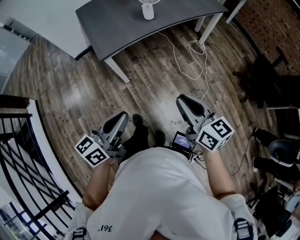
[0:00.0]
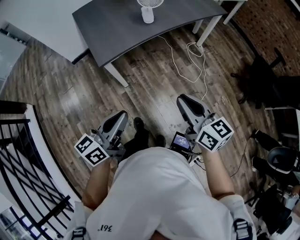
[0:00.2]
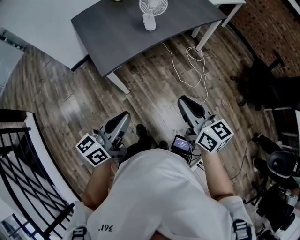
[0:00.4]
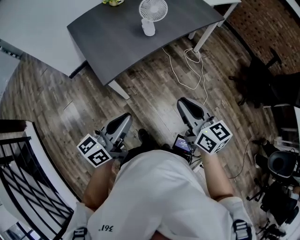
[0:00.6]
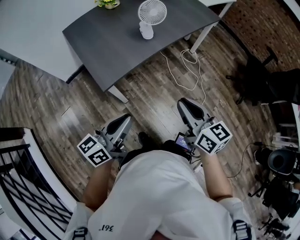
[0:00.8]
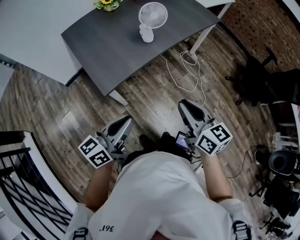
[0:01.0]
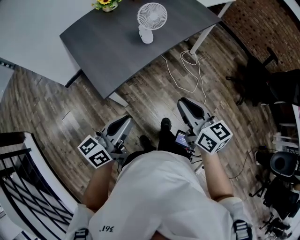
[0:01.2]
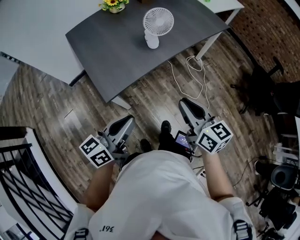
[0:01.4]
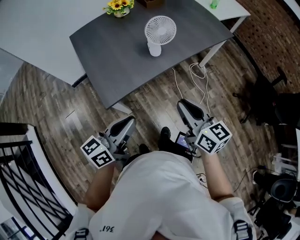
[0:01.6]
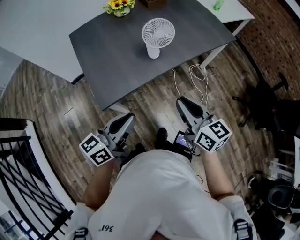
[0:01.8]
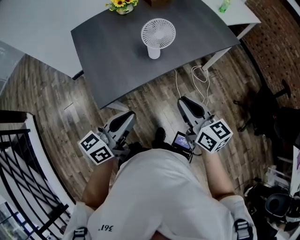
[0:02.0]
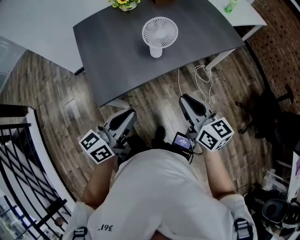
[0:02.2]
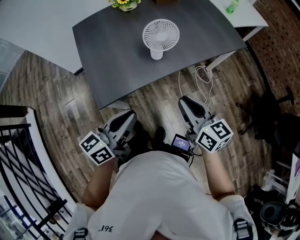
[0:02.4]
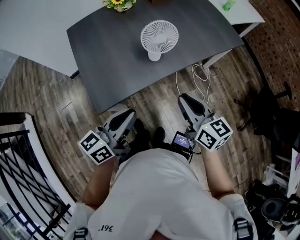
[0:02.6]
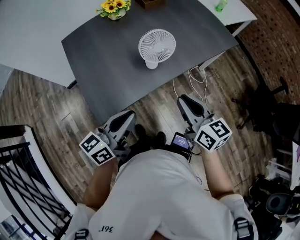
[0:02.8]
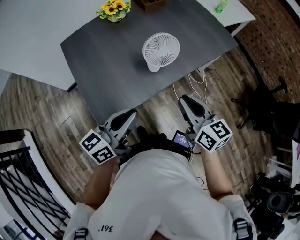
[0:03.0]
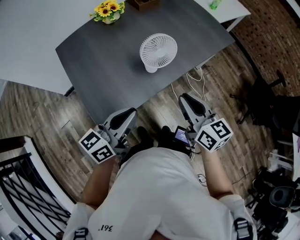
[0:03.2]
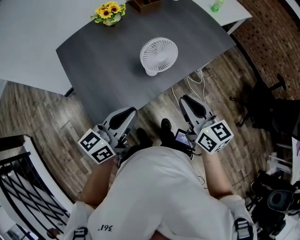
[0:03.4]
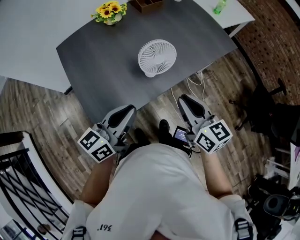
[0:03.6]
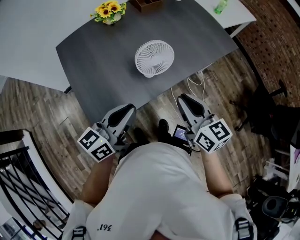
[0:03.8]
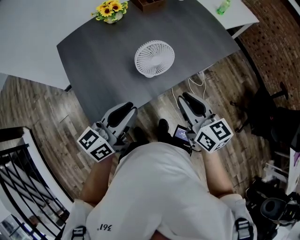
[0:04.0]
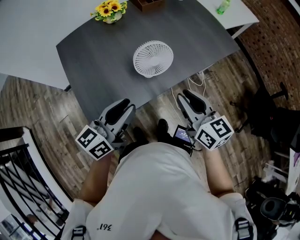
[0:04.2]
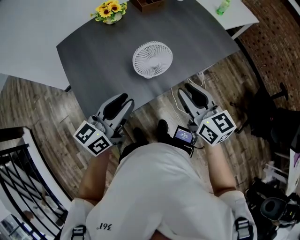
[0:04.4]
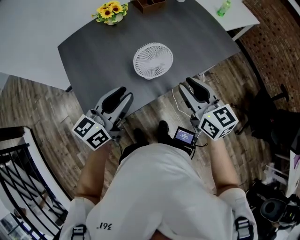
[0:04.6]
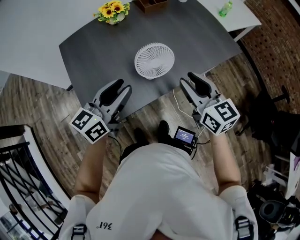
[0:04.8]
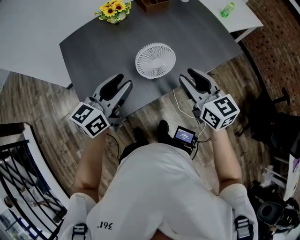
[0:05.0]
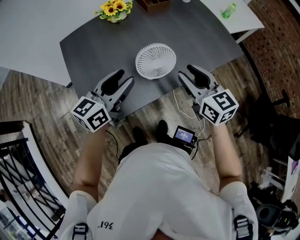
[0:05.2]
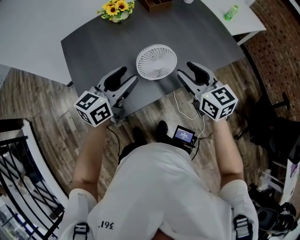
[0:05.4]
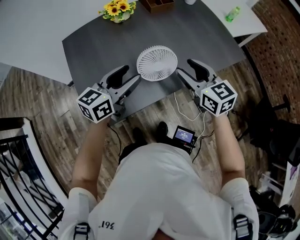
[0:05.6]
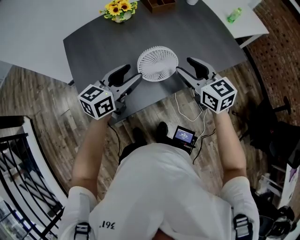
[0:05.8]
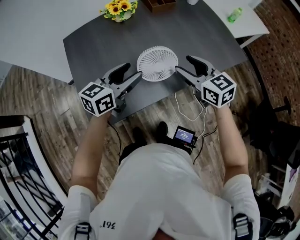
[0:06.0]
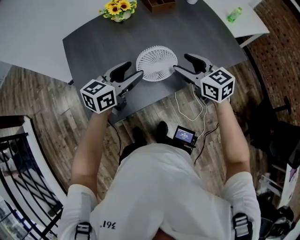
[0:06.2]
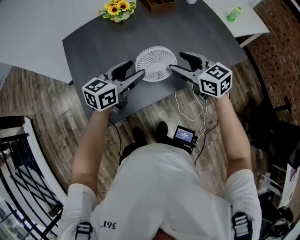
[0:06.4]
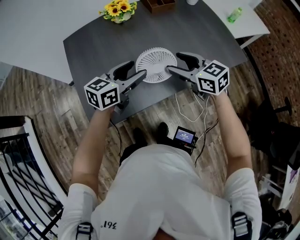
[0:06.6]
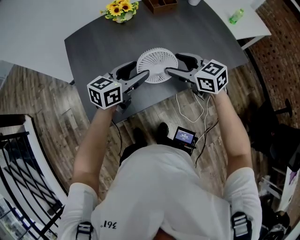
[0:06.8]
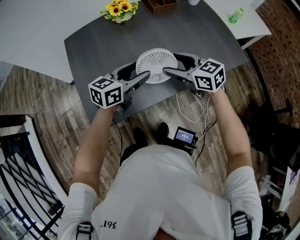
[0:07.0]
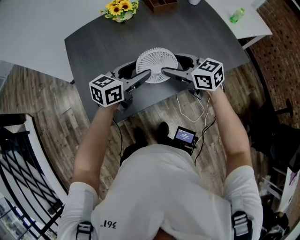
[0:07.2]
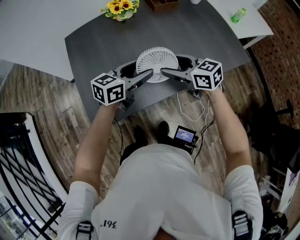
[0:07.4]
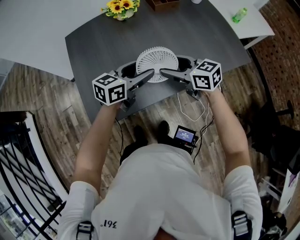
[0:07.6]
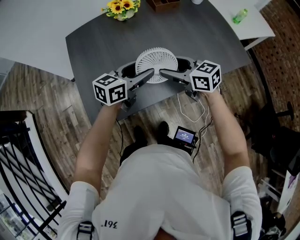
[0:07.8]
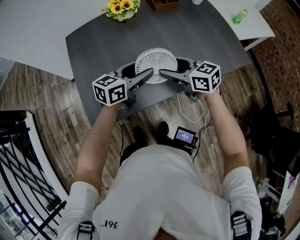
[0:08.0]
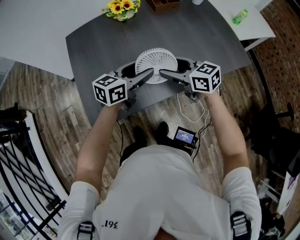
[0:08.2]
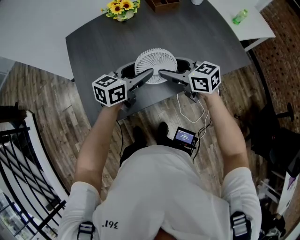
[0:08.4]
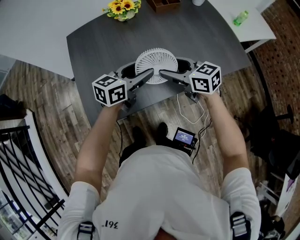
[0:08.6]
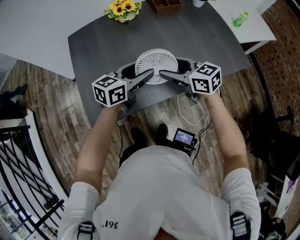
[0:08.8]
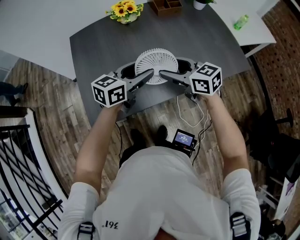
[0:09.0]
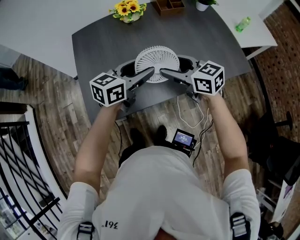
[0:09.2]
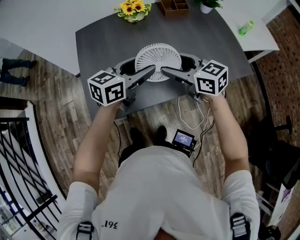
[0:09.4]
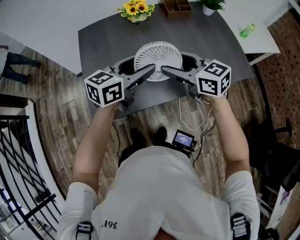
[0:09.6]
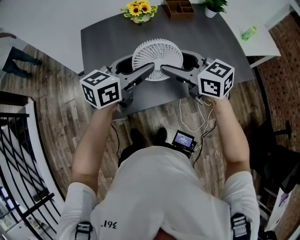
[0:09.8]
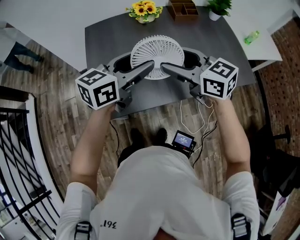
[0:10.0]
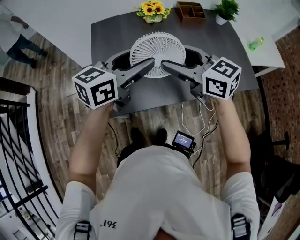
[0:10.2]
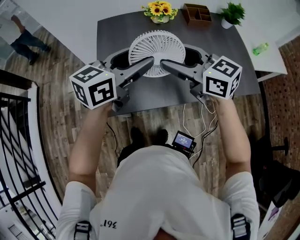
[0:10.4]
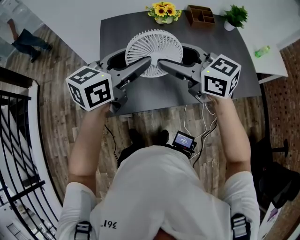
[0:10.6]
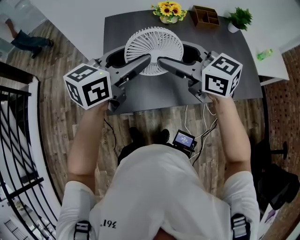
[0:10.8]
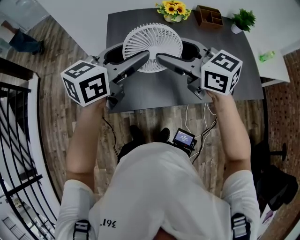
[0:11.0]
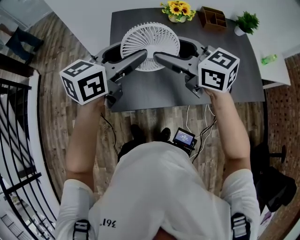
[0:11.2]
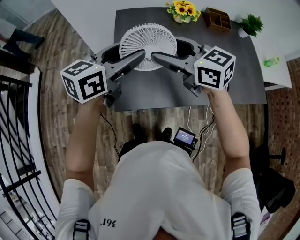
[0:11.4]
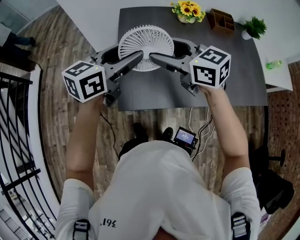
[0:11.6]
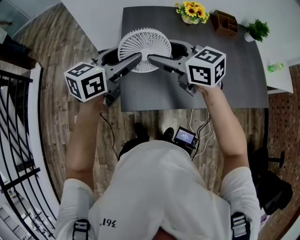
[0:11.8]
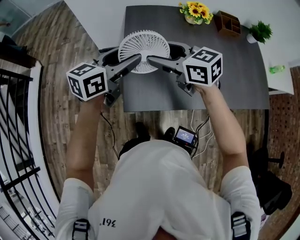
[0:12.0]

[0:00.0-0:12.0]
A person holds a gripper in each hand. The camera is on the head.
0:00.0 to 0:01.6: Both grippers travel together forward, about 20 cm.
0:01.6 to 0:03.0: The two grippers go about 15 cm forward.
0:03.0 to 0:04.4: Both grippers travel together forward, some 10 cm. The left gripper opens its fingers.
0:04.4 to 0:06.0: The grippers both shift forward by about 10 cm. The left gripper opens up. Meanwhile the right gripper opens its fingers.
0:06.0 to 0:07.6: The right gripper moves to the left, about 5 cm, and rotates about 20 degrees. Meanwhile the left gripper shifts by roughly 5 cm.
0:07.6 to 0:09.0: The grippers stay close to where they were, moving slightly.
0:09.0 to 0:10.4: The two grippers go some 20 cm upward and to the left.
0:10.4 to 0:12.0: Both grippers move to the left, approximately 20 cm.

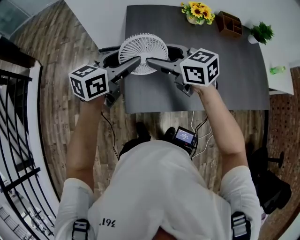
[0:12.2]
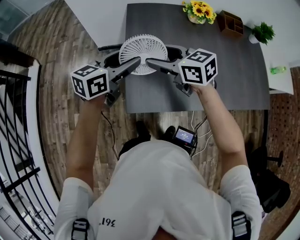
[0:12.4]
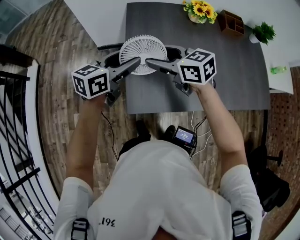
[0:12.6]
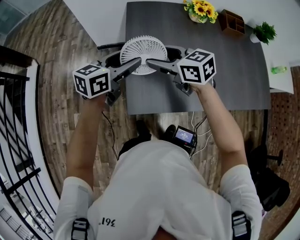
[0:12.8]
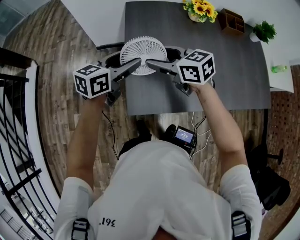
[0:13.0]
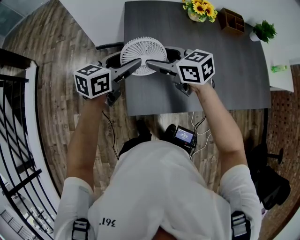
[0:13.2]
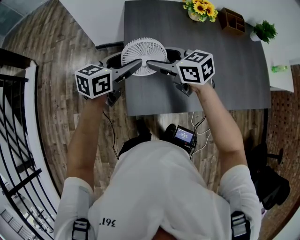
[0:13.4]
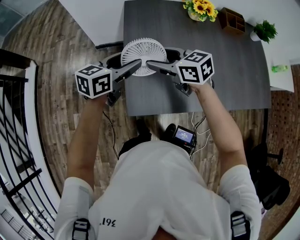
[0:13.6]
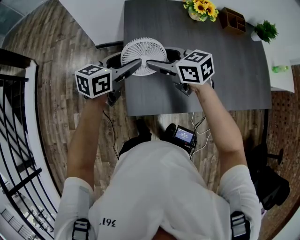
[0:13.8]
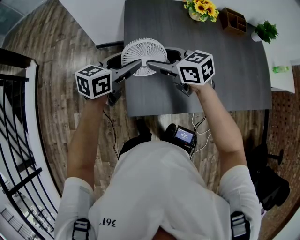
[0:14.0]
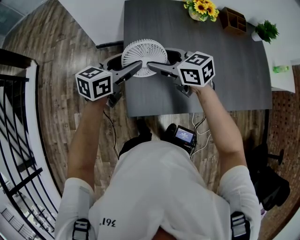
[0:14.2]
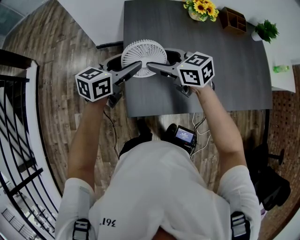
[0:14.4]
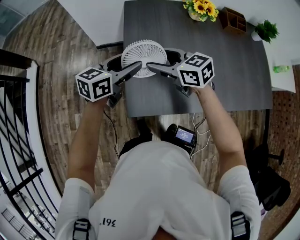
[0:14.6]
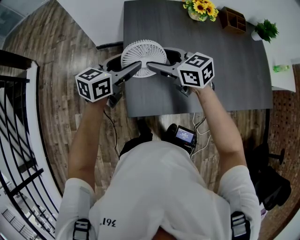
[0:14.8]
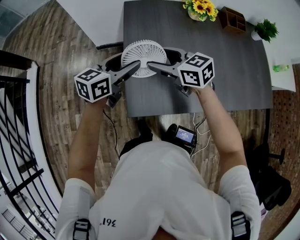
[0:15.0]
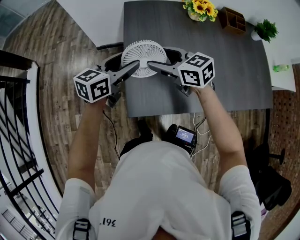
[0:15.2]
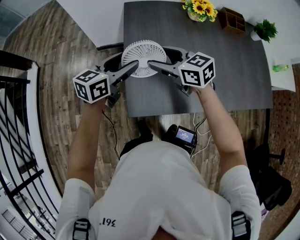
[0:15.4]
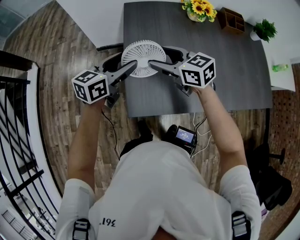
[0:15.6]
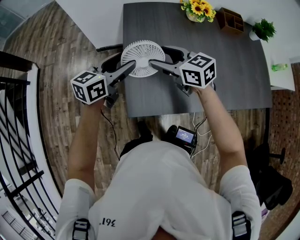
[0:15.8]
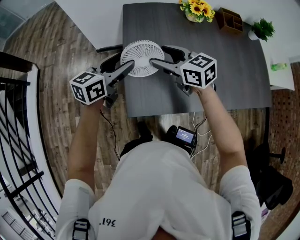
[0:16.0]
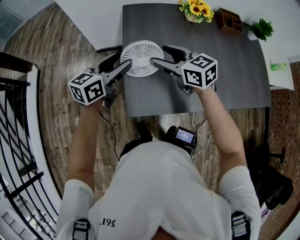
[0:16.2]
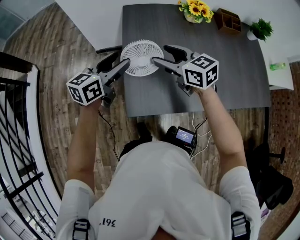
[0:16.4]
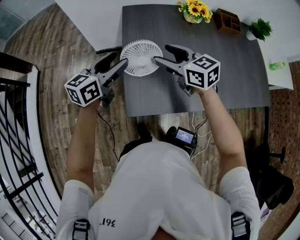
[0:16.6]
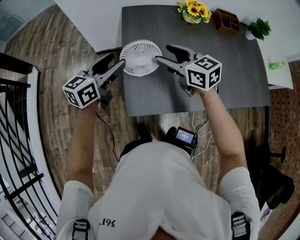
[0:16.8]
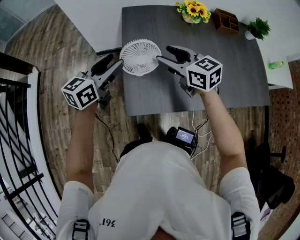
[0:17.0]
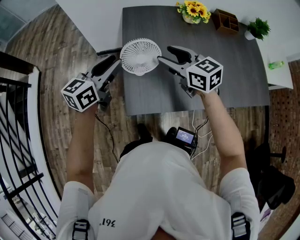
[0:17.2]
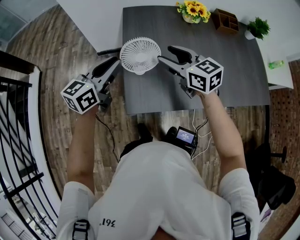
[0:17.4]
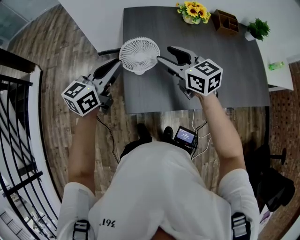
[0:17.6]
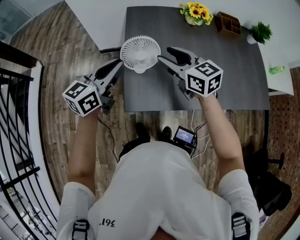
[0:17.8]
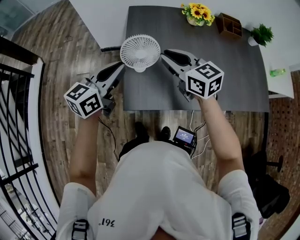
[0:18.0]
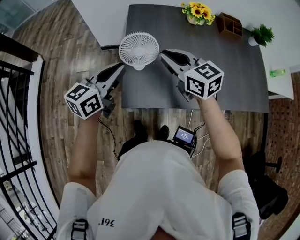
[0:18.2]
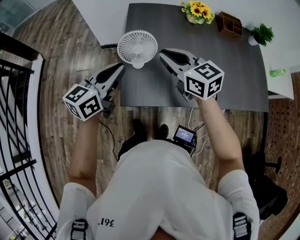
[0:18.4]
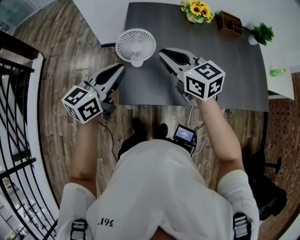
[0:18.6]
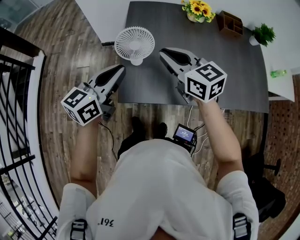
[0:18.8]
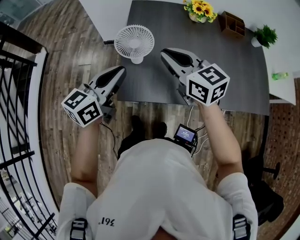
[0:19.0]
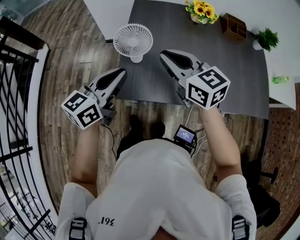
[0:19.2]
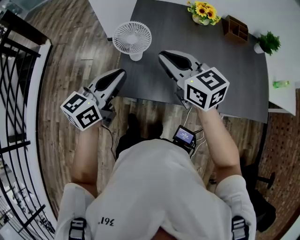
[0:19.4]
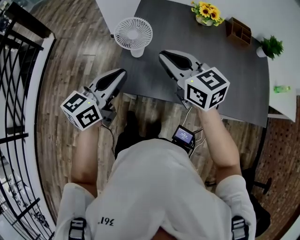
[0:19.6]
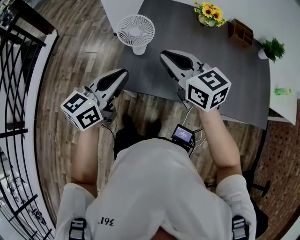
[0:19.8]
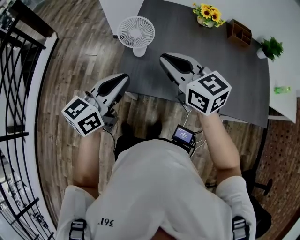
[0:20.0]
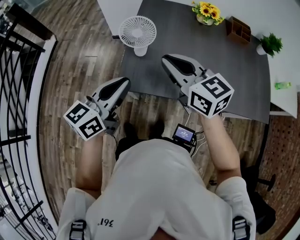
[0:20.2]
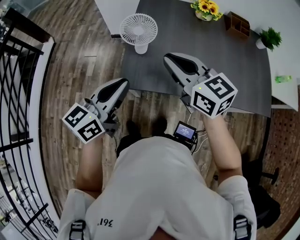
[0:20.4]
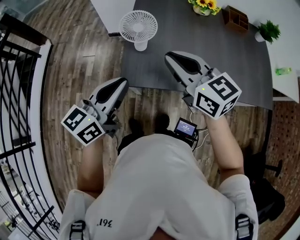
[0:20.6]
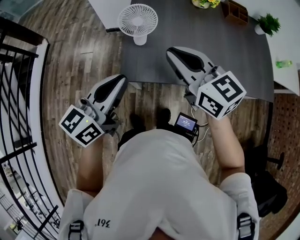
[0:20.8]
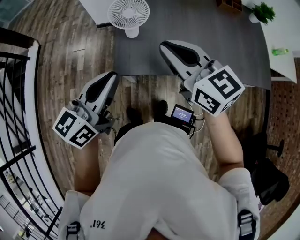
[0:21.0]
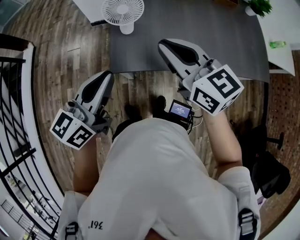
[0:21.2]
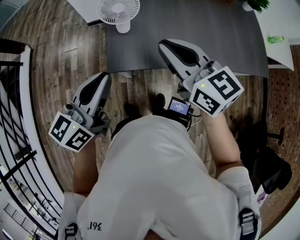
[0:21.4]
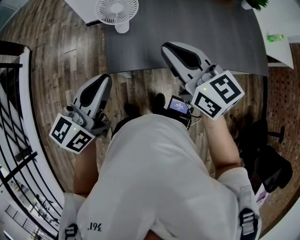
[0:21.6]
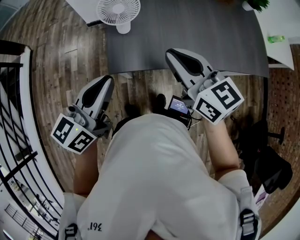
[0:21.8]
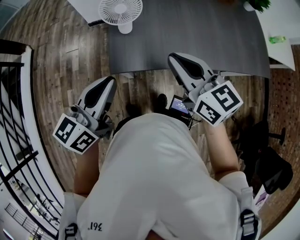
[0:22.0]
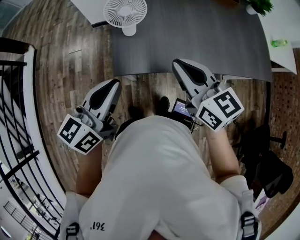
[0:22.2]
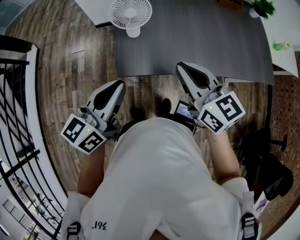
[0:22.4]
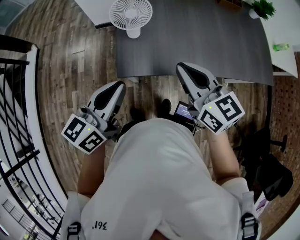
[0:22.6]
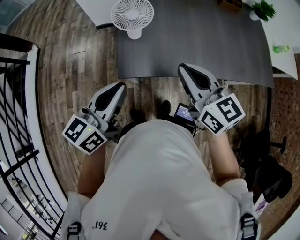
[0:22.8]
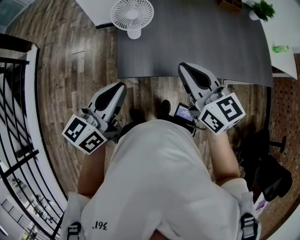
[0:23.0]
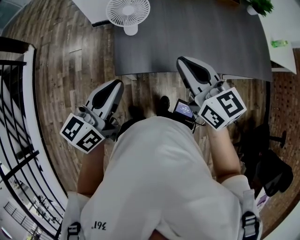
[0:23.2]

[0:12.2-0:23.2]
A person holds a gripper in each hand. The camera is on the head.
0:12.2 to 0:13.8: Both grippers travel together downward, approximately 5 cm.
0:13.8 to 0:15.4: There are only small adjustments of the grippers.
0:15.4 to 0:17.0: The right gripper changes place by about 5 cm. The left gripper shifts by approximately 5 cm.
0:17.0 to 0:18.4: The left gripper heads backward, covering approximately 10 cm, and closes up. The right gripper travels backward by some 5 cm, and closes up.
0:18.4 to 0:20.0: The two grippers go roughly 10 cm backward.
0:20.0 to 0:21.6: The left gripper ends up roughly 5 cm from where it was. Meanwhile the right gripper moves backward, about 5 cm.
0:21.6 to 0:23.2: The grippers move only a little.

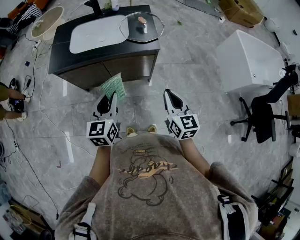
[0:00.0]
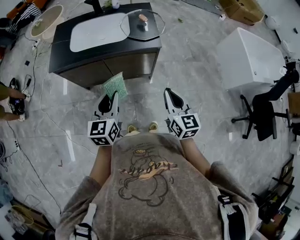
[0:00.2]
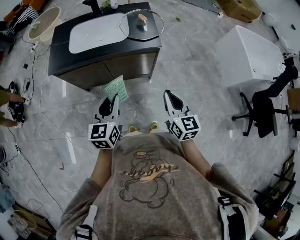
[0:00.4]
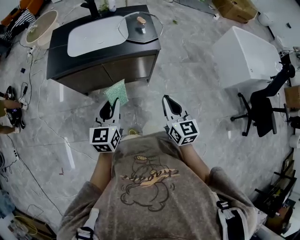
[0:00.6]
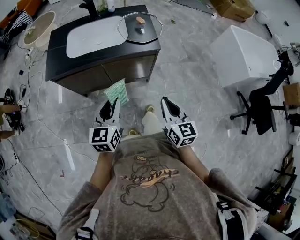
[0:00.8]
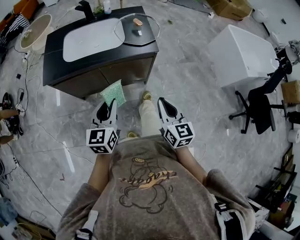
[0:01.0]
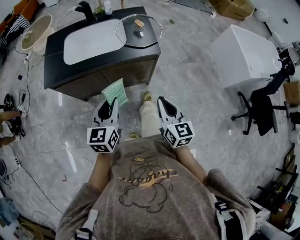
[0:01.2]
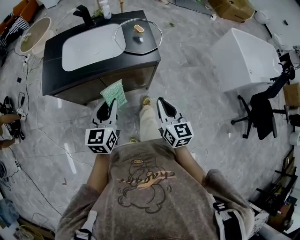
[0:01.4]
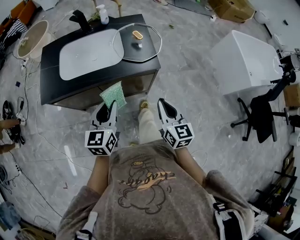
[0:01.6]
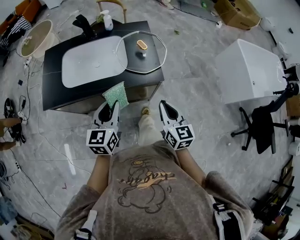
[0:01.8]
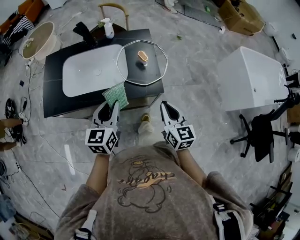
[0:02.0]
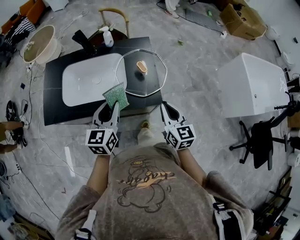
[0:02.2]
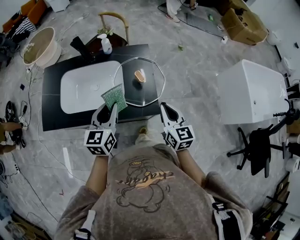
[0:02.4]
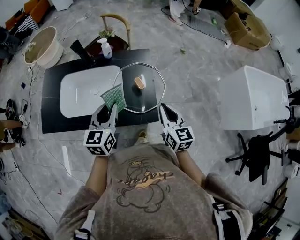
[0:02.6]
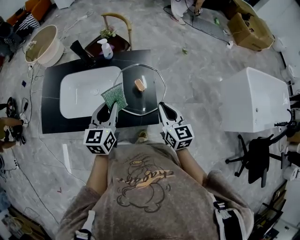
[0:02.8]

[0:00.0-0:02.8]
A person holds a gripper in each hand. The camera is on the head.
0:00.0 to 0:01.4: The right gripper heads forward and to the left, covering some 10 cm, while the left gripper heads forward, covering approximately 10 cm.
0:01.4 to 0:02.8: The grippers both shift forward by about 35 cm.
